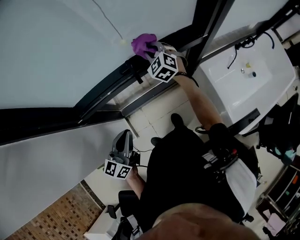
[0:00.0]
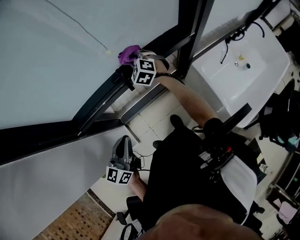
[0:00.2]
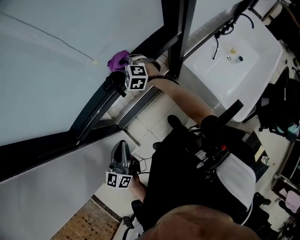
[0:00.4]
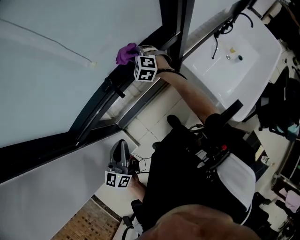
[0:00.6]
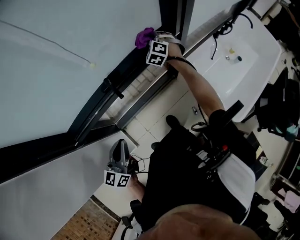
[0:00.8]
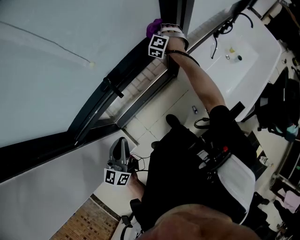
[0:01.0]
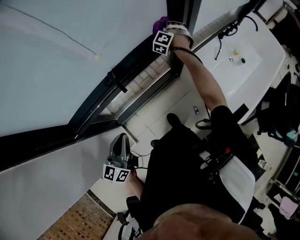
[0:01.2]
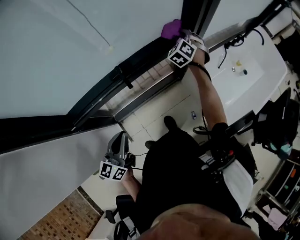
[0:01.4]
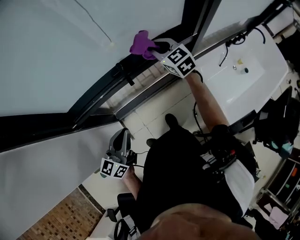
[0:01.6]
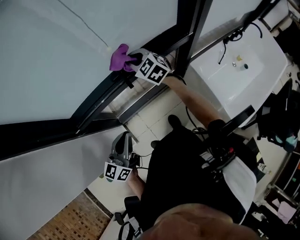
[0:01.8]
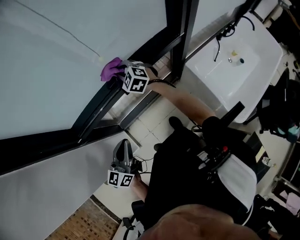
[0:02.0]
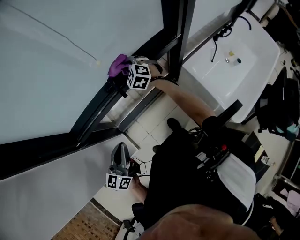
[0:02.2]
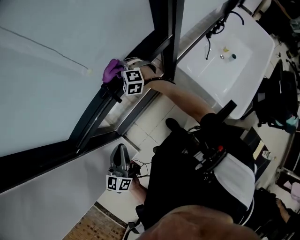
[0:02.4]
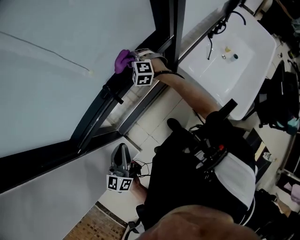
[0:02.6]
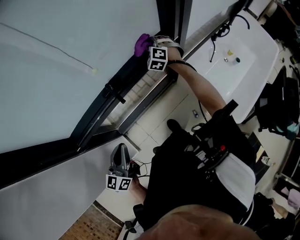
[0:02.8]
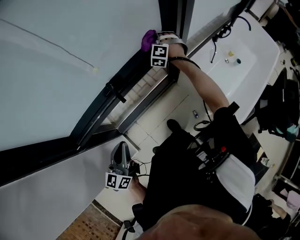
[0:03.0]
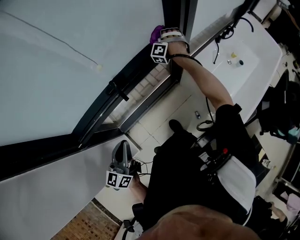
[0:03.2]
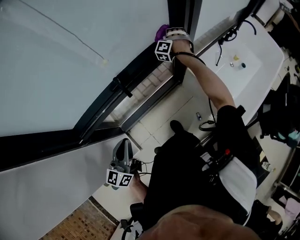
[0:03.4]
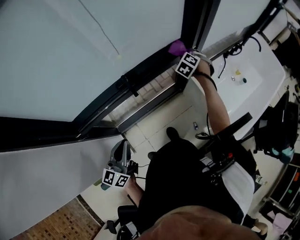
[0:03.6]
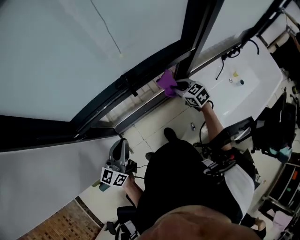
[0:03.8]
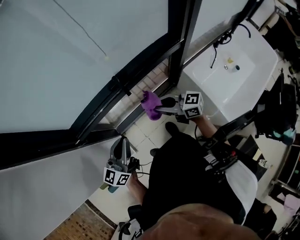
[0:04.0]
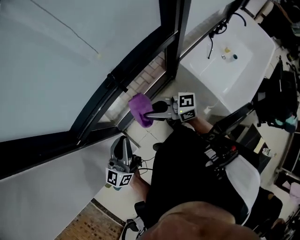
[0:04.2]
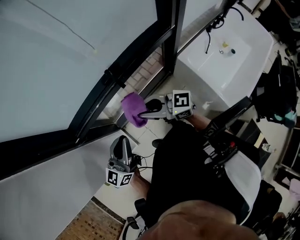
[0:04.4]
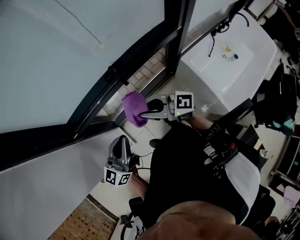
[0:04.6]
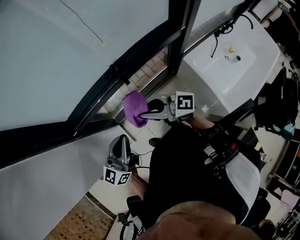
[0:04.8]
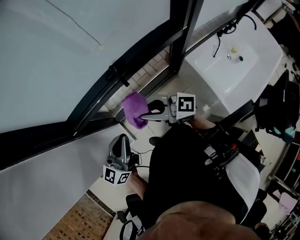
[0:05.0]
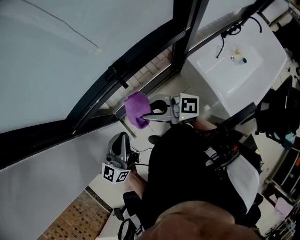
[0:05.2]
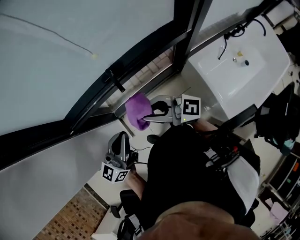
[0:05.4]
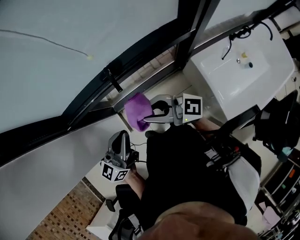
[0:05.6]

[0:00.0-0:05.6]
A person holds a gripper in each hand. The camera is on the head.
0:00.0 to 0:01.4: The right gripper changes place by approximately 20 cm, and turns by roughly 30 degrees.
0:02.8 to 0:04.2: The left gripper shifts by some 5 cm. Meanwhile the right gripper changes place by some 40 cm, and points its fingers about 40 degrees further upward.
0:04.2 to 0:05.6: The right gripper shifts by roughly 5 cm, while the left gripper travels to the right by some 10 cm.

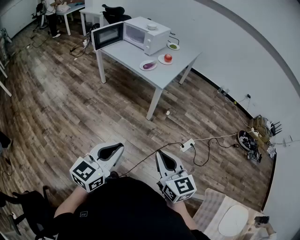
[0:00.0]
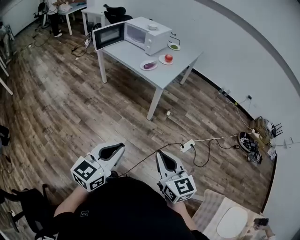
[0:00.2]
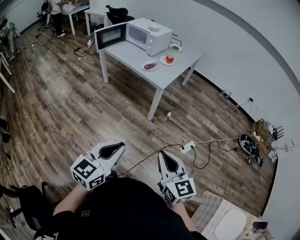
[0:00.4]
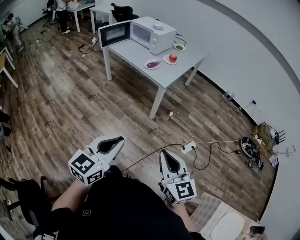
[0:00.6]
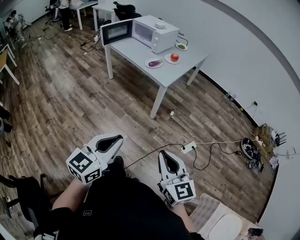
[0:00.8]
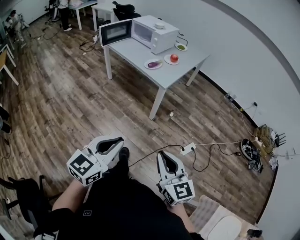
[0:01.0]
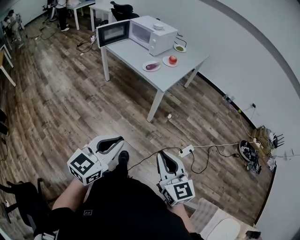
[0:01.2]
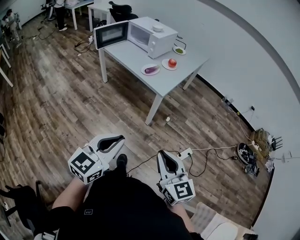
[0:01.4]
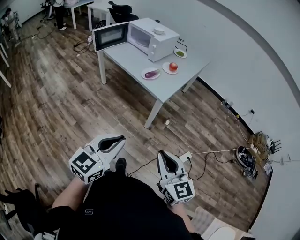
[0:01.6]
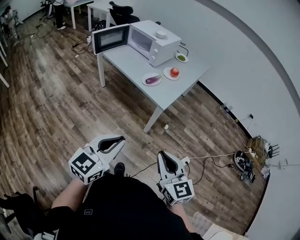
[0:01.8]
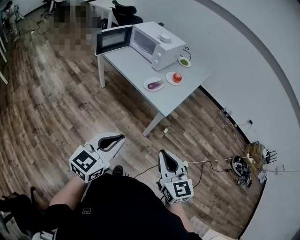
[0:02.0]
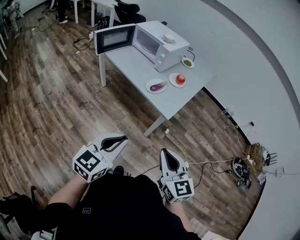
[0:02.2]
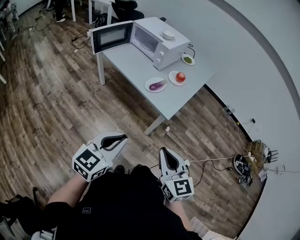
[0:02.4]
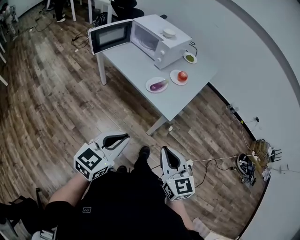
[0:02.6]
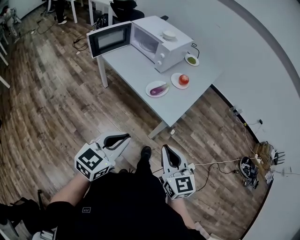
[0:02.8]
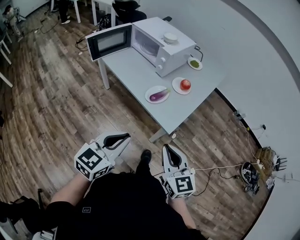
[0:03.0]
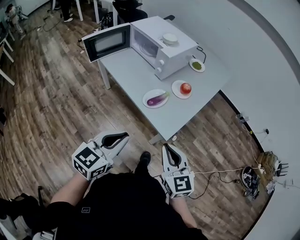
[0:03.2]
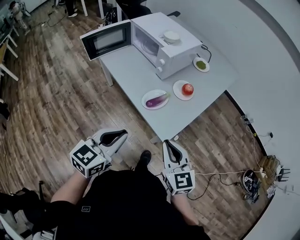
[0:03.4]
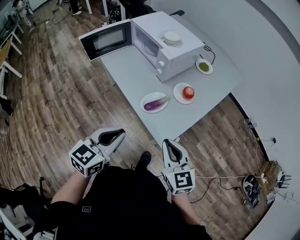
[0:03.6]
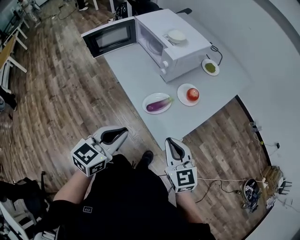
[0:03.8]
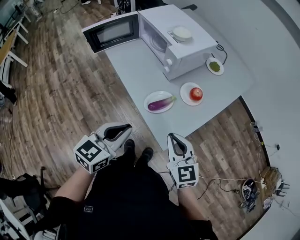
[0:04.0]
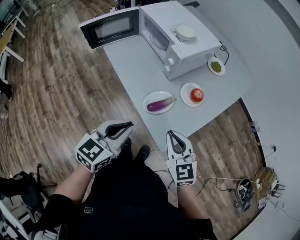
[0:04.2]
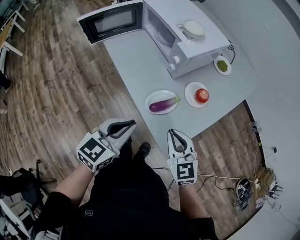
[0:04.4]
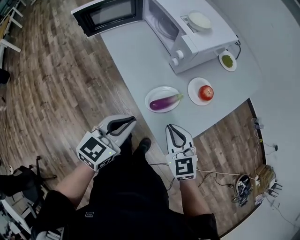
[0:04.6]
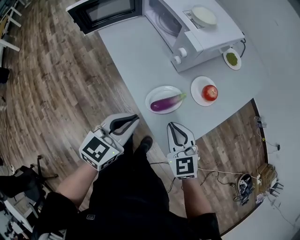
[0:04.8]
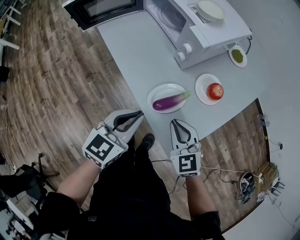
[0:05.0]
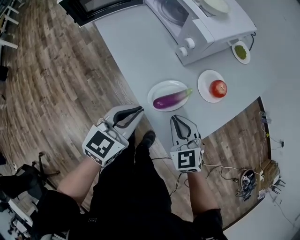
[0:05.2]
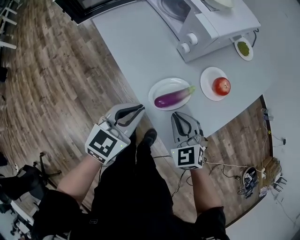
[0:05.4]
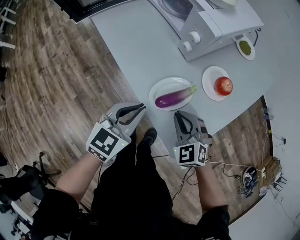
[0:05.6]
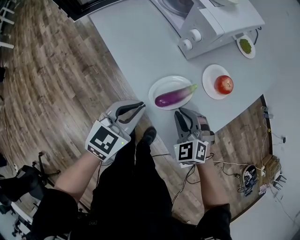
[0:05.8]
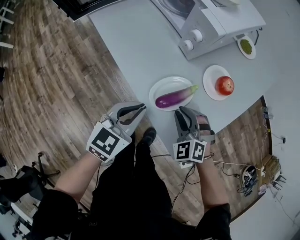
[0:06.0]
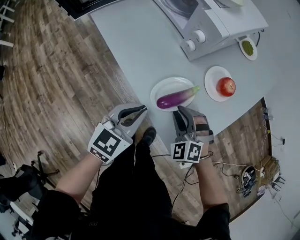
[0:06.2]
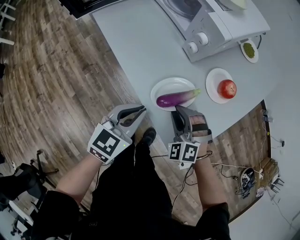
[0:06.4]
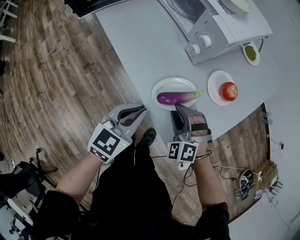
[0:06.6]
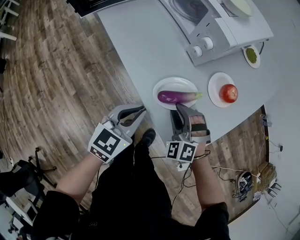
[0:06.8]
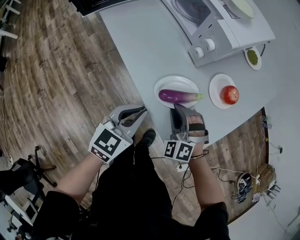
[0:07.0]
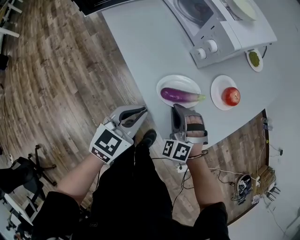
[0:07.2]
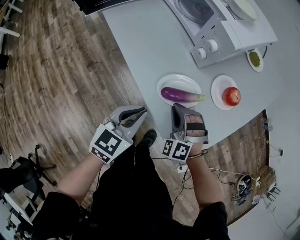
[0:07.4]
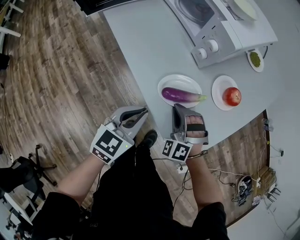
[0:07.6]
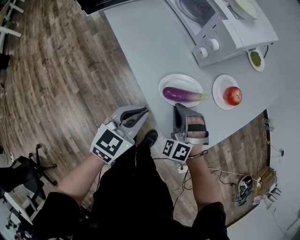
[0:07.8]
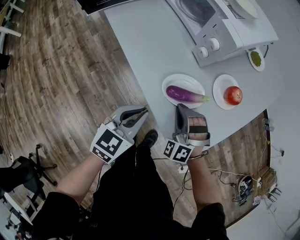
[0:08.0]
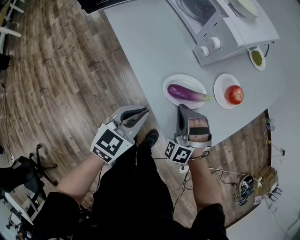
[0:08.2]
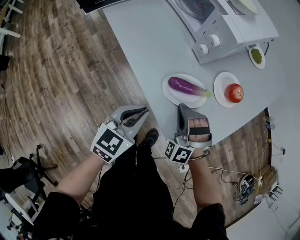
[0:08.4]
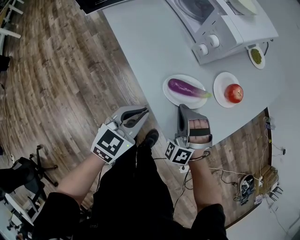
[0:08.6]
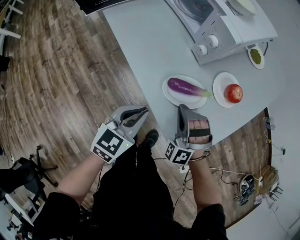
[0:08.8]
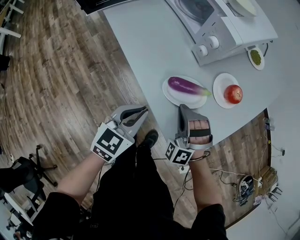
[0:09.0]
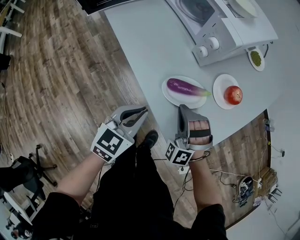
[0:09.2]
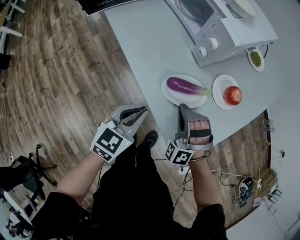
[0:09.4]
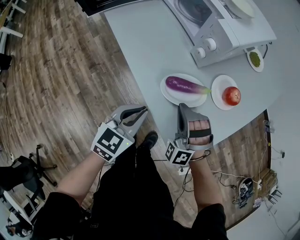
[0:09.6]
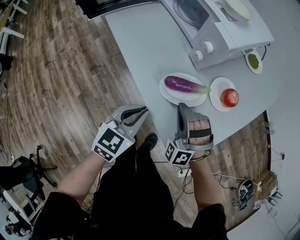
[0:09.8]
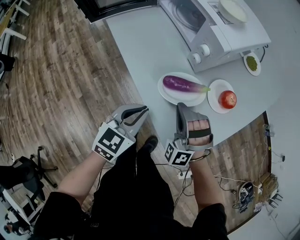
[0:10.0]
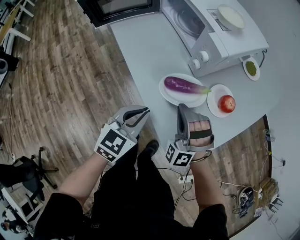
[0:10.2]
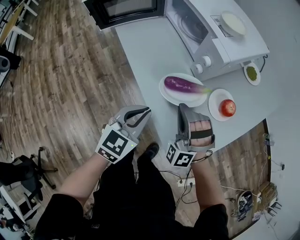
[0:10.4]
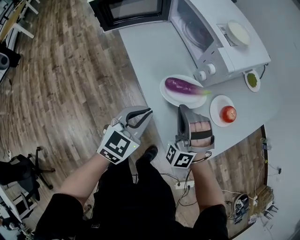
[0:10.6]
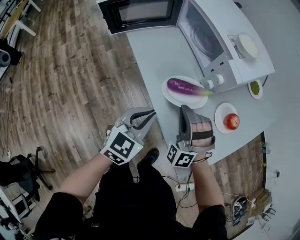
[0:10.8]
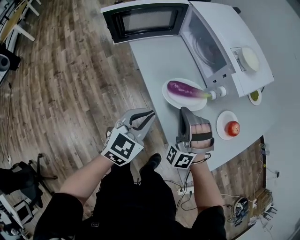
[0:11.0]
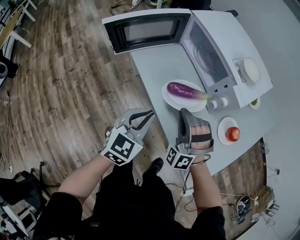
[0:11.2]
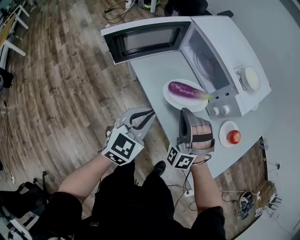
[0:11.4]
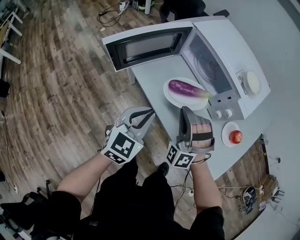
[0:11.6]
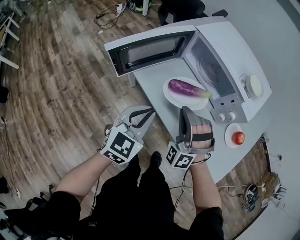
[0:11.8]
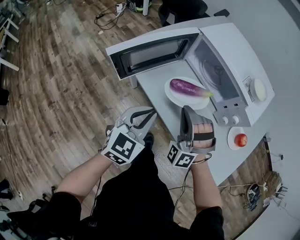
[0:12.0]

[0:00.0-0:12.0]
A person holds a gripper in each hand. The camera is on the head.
0:00.0 to 0:01.6: Both grippers travel together forward, about 15 cm.
0:01.6 to 0:03.0: The two grippers go approximately 30 cm forward.
0:03.0 to 0:04.4: Both grippers move forward, some 25 cm. The right gripper turns by some 20 degrees.
0:04.4 to 0:06.0: The two grippers go about 20 cm downward and forward. The right gripper swivels about 40 degrees.
0:06.0 to 0:07.6: The right gripper goes approximately 5 cm to the left, and changes its angle by approximately 20 degrees.
0:07.6 to 0:09.0: There are only small adjustments of the grippers.
0:09.0 to 0:10.4: The left gripper moves upward, roughly 5 cm, while the right gripper heads upward, covering some 10 cm.
0:10.4 to 0:12.0: The two grippers go about 30 cm to the left and forward.

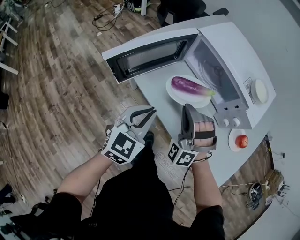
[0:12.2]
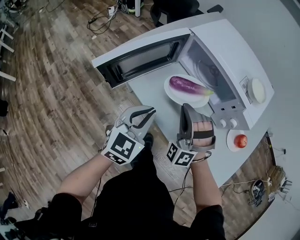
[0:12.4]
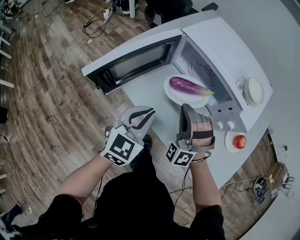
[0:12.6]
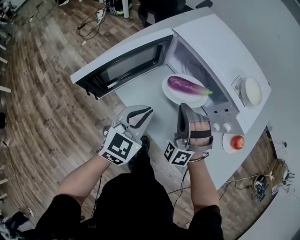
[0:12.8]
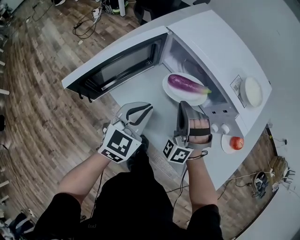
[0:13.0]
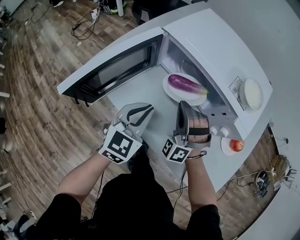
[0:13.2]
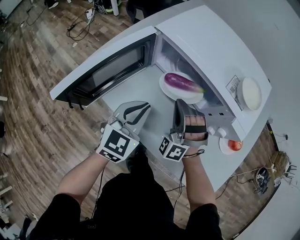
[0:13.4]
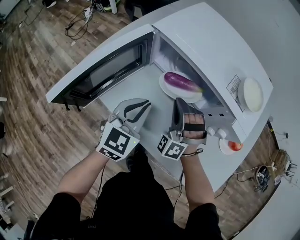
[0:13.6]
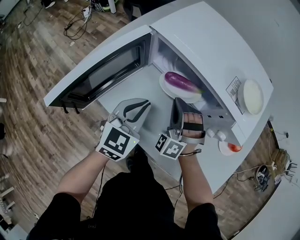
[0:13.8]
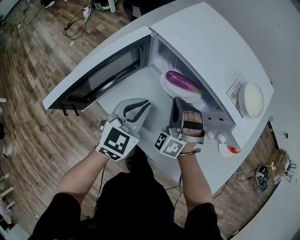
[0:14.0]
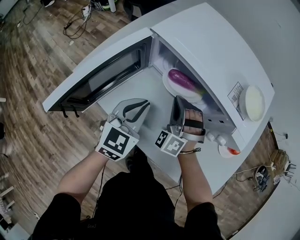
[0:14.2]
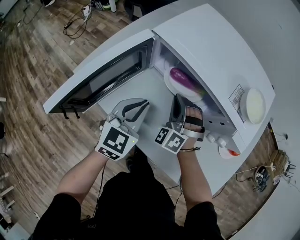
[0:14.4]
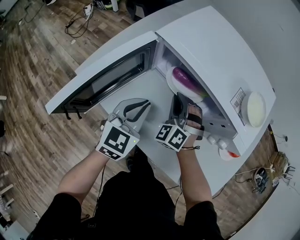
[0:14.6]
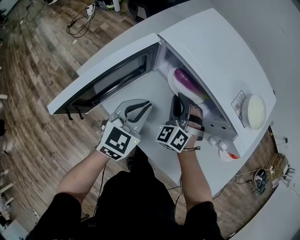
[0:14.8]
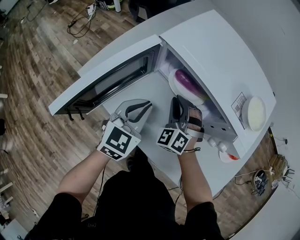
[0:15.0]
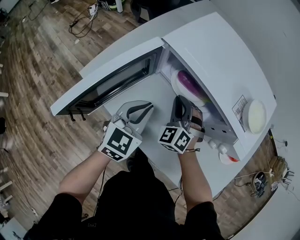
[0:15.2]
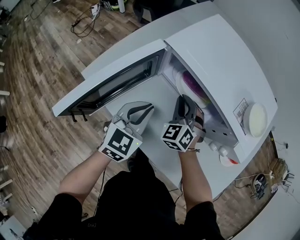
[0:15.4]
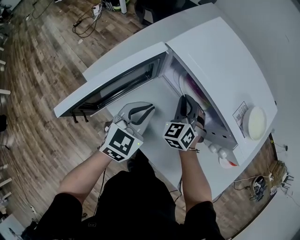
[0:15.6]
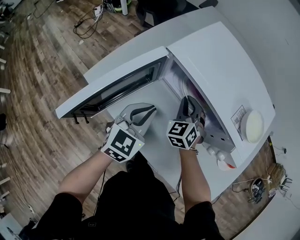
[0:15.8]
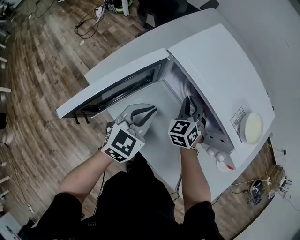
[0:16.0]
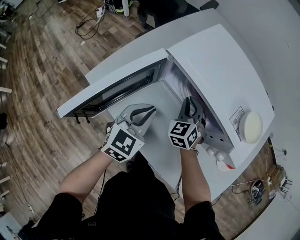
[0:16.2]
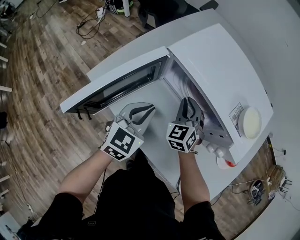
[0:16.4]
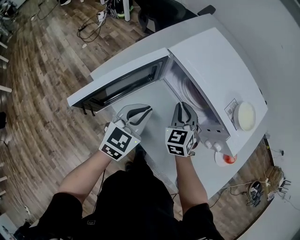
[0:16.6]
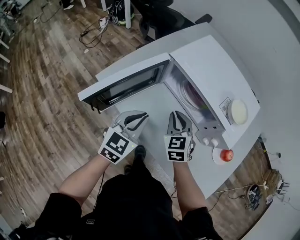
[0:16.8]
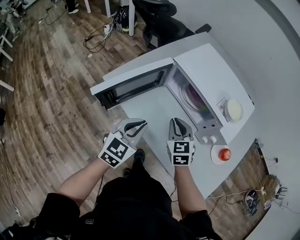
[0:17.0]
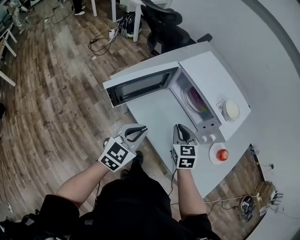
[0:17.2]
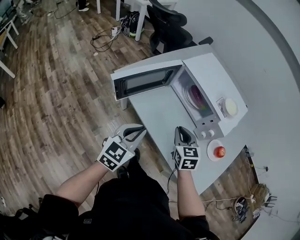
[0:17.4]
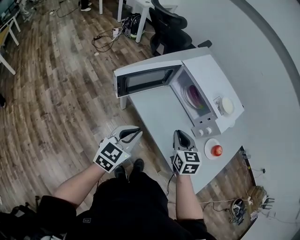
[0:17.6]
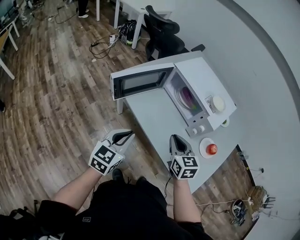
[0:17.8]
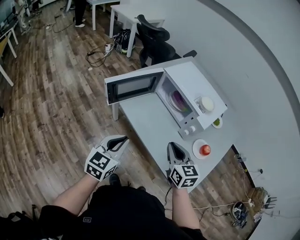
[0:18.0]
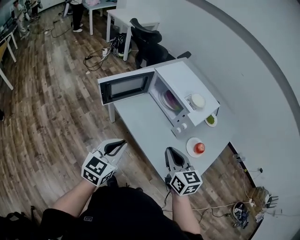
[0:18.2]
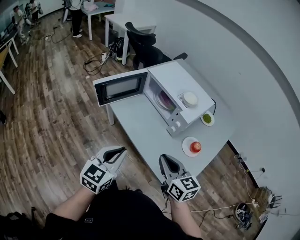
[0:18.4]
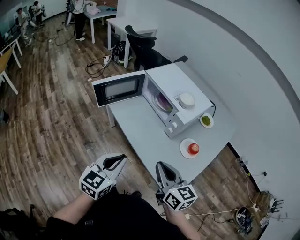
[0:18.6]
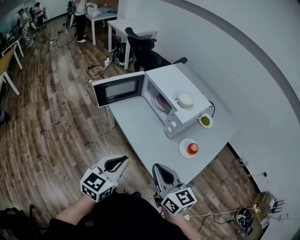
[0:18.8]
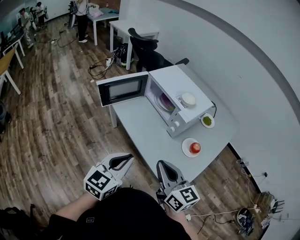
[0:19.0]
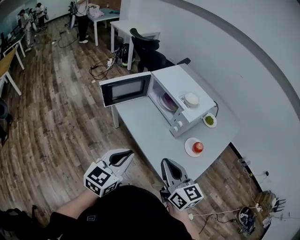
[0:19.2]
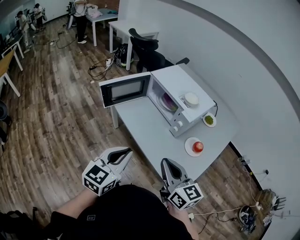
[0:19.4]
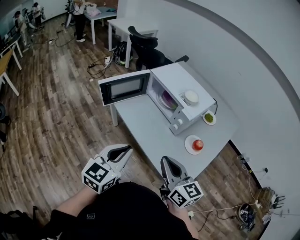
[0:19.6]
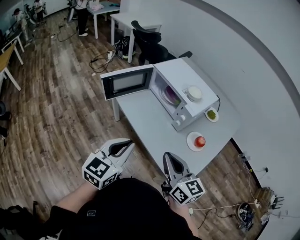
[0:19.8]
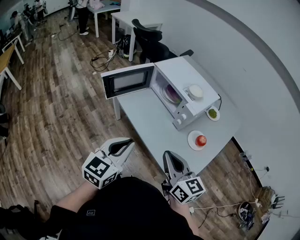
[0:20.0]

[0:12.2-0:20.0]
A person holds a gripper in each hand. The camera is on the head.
0:12.2 to 0:13.8: The left gripper heads forward, covering roughly 15 cm. The right gripper is displaced forward and downward by approximately 15 cm.
0:13.8 to 0:15.4: The right gripper is displaced forward by some 5 cm, and swivels about 30 degrees.
0:15.4 to 0:16.8: The two grippers go approximately 10 cm backward and upward. The right gripper rotates some 30 degrees.
0:16.8 to 0:18.4: Both grippers move backward and upward, approximately 35 cm. The right gripper turns by approximately 40 degrees.
0:18.4 to 0:20.0: The right gripper ends up some 5 cm from where it was.
